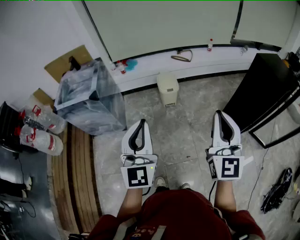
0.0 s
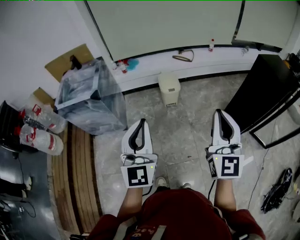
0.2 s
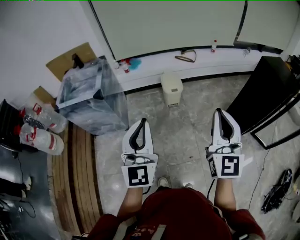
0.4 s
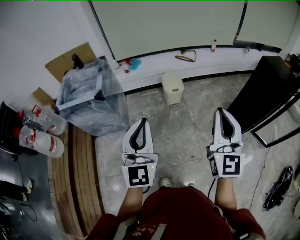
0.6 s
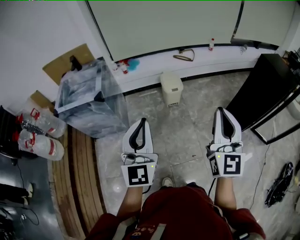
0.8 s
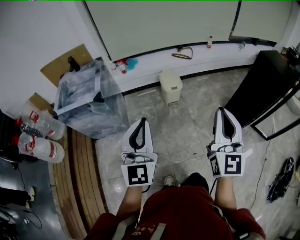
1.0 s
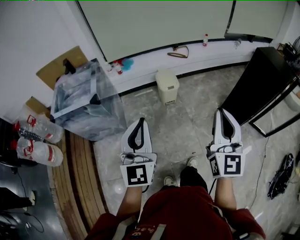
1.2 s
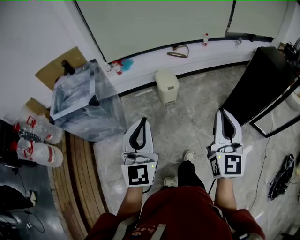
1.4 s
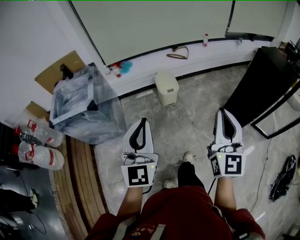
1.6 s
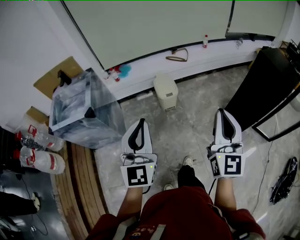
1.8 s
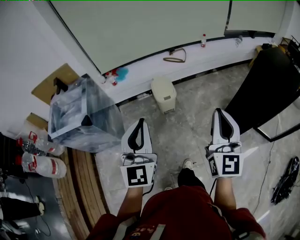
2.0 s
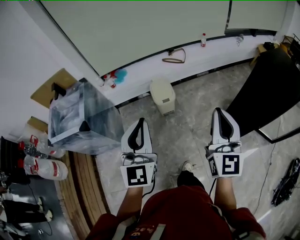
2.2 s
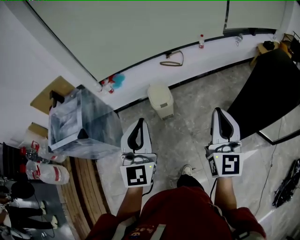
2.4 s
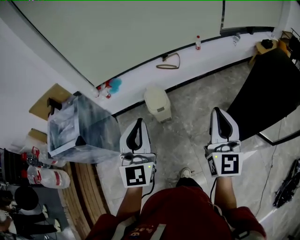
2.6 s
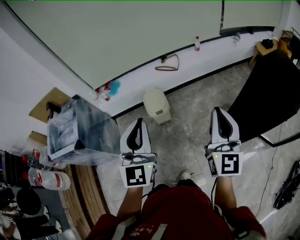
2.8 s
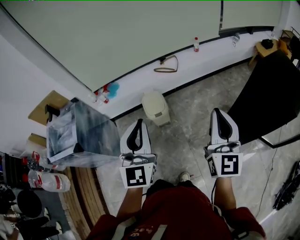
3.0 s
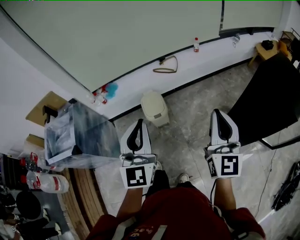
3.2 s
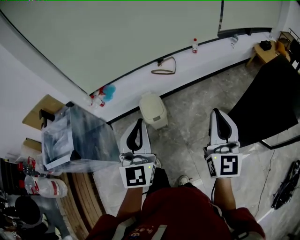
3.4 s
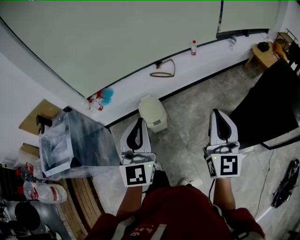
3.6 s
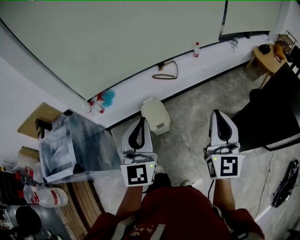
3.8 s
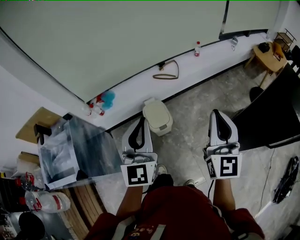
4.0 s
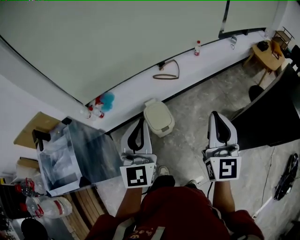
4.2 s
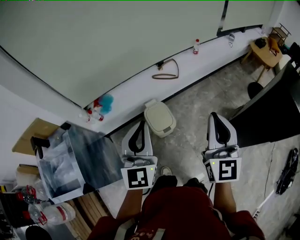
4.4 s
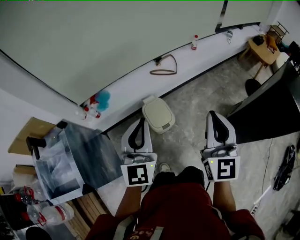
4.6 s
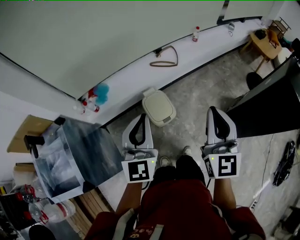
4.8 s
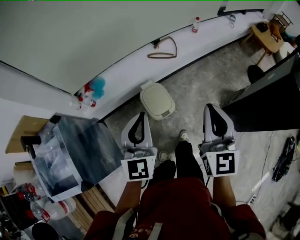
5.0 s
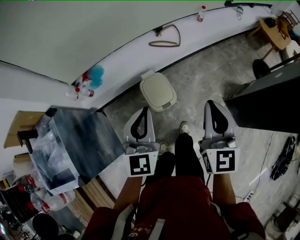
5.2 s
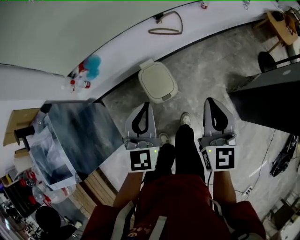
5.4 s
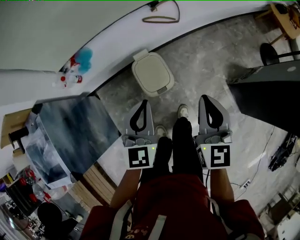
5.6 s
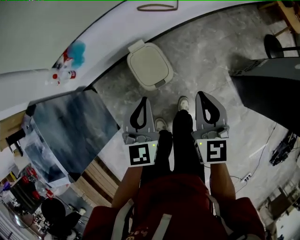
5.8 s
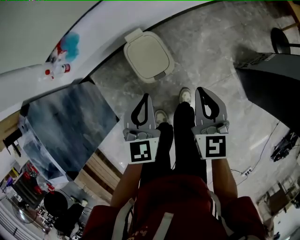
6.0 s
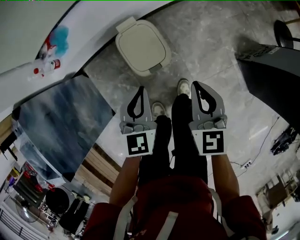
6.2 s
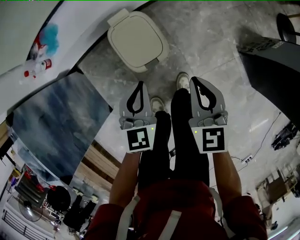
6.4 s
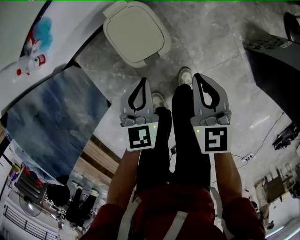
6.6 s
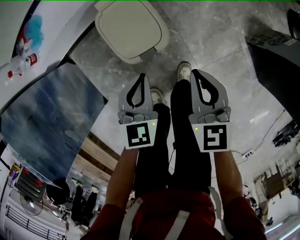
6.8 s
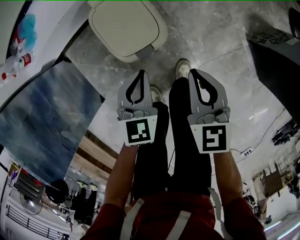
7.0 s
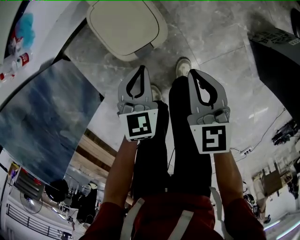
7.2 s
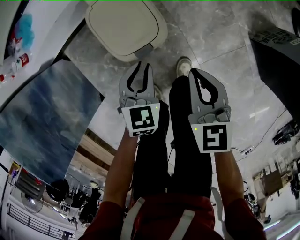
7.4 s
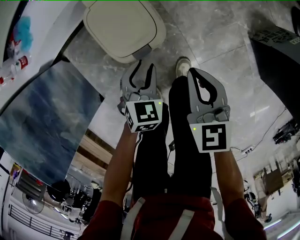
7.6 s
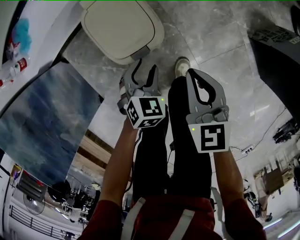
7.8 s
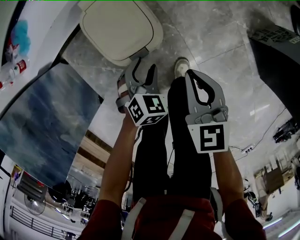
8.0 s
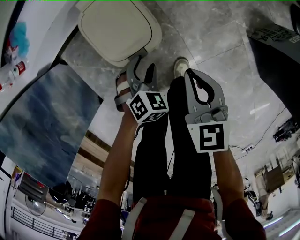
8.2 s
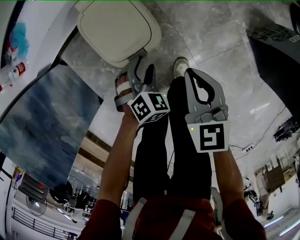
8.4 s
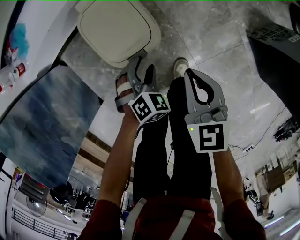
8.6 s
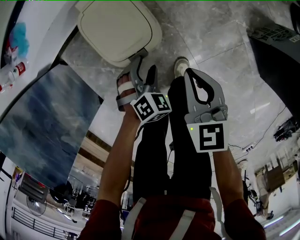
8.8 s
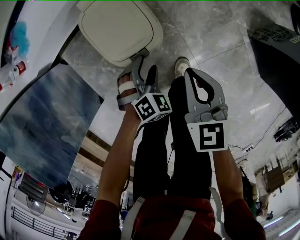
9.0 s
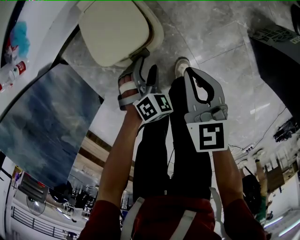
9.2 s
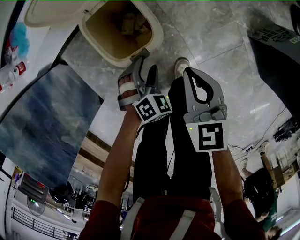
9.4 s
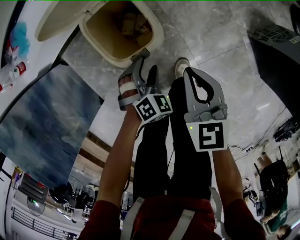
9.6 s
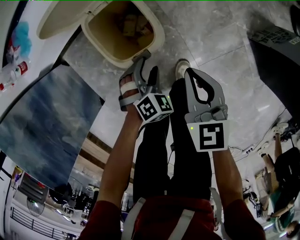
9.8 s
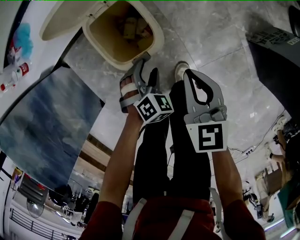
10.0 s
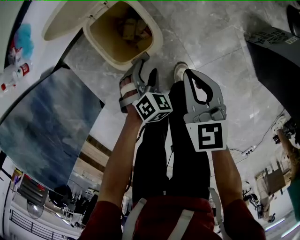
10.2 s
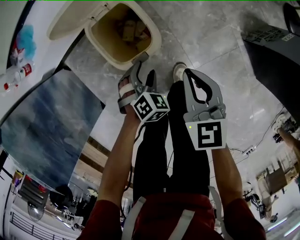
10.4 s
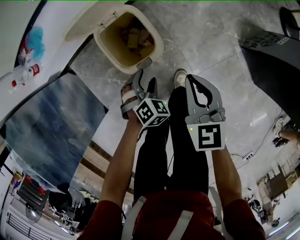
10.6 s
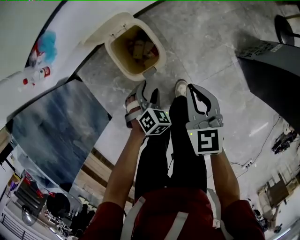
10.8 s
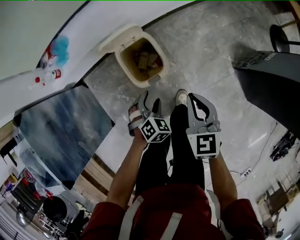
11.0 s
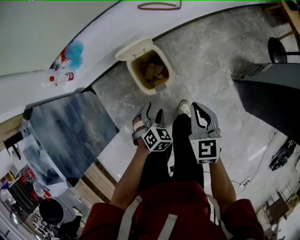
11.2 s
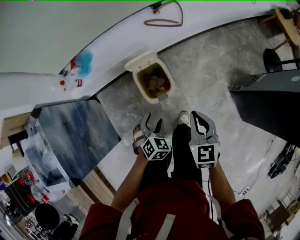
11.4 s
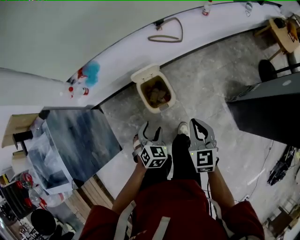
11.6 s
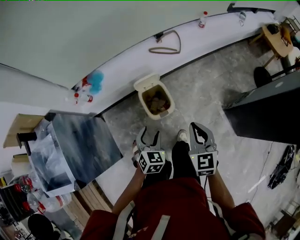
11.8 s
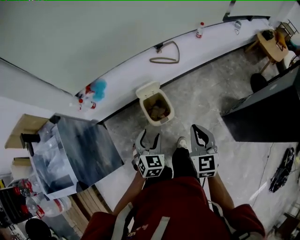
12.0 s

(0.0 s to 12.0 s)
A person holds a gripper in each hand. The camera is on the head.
0.0 s - 1.6 s: The grippers both shift forward and to the left by roughly 10 cm.
1.6 s - 3.0 s: The two grippers go some 30 cm forward and to the right.
3.0 s - 4.4 s: The left gripper travels forward and to the left by some 25 cm; the right gripper shifts roughly 25 cm to the left and forward.
4.4 s - 6.0 s: The two grippers go roughly 35 cm downward. The left gripper tilts its fingers roughly 30 degrees downward; the right gripper rotates some 30 degrees.
6.0 s - 7.6 s: Both grippers travel together downward, approximately 25 cm. The left gripper swivels roughly 30 degrees, and opens up.
7.6 s - 9.0 s: The left gripper is displaced downward by about 5 cm, turns by roughly 30 degrees, and opens up.
9.0 s - 10.4 s: There are only small adjustments of the grippers.
10.4 s - 12.0 s: Both grippers move upward, some 35 cm. The left gripper swivels some 40 degrees.

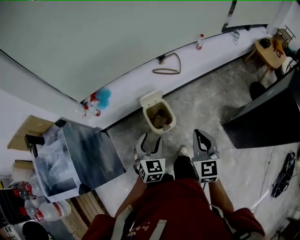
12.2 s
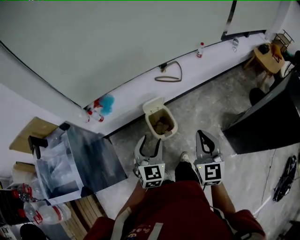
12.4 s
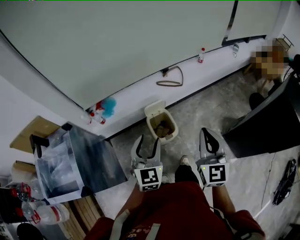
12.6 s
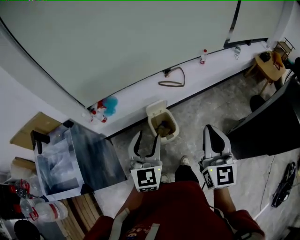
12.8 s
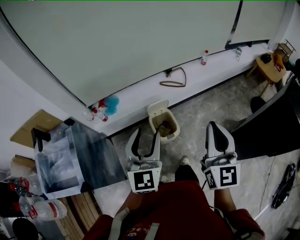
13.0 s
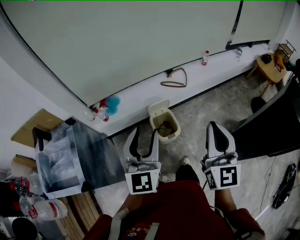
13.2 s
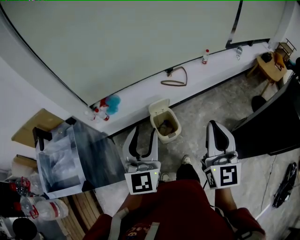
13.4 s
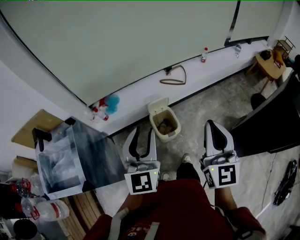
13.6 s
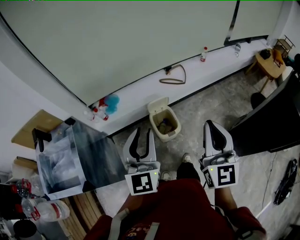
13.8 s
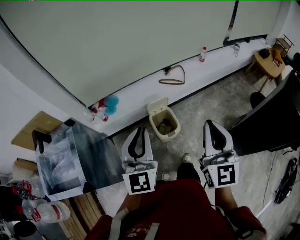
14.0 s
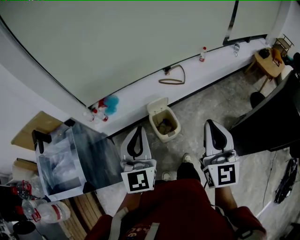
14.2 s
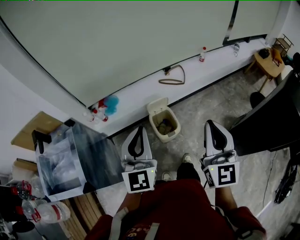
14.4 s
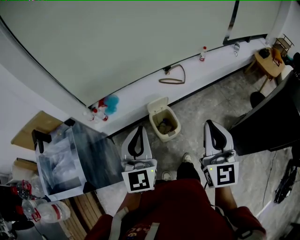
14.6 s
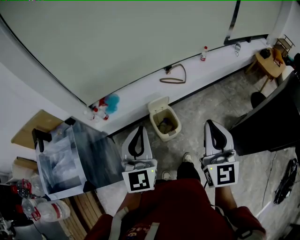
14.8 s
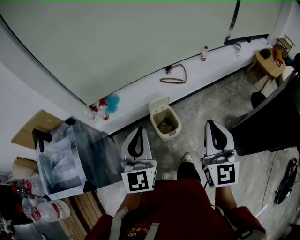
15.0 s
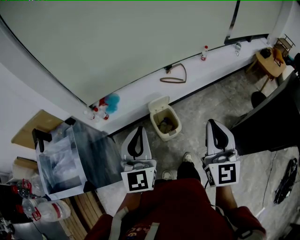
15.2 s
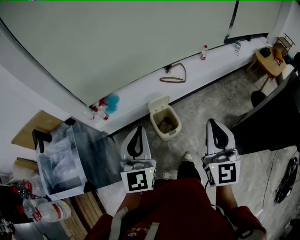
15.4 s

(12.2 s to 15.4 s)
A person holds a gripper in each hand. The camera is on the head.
12.2 s - 13.8 s: The grippers both shift upward by about 20 cm. The left gripper angles its fingers upward, by roughly 30 degrees, and closes its fingers.
13.8 s - 15.4 s: The left gripper closes.

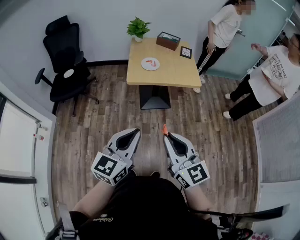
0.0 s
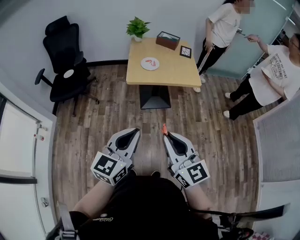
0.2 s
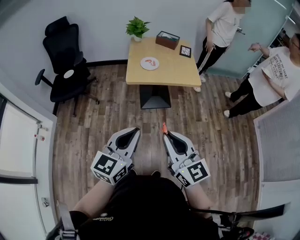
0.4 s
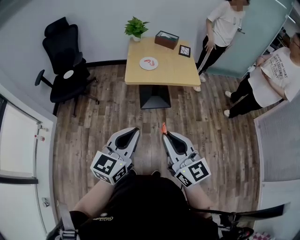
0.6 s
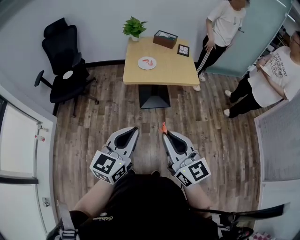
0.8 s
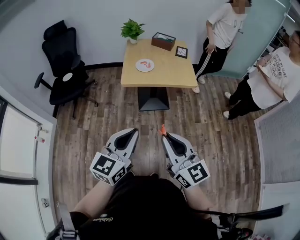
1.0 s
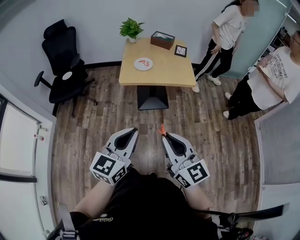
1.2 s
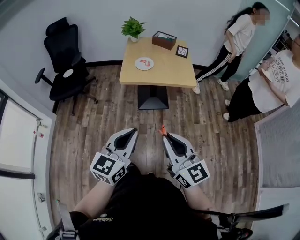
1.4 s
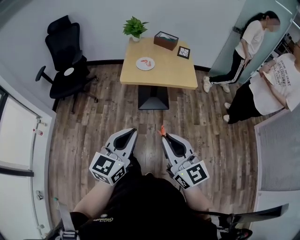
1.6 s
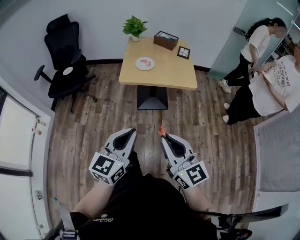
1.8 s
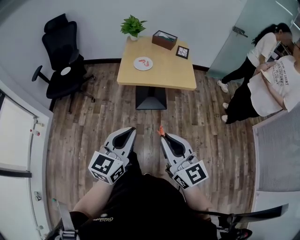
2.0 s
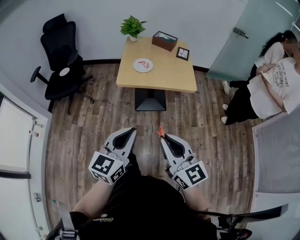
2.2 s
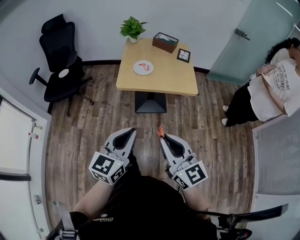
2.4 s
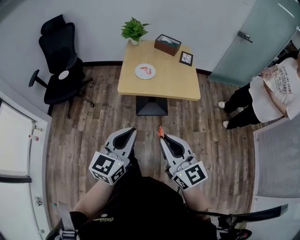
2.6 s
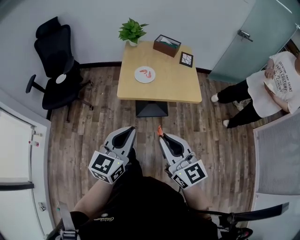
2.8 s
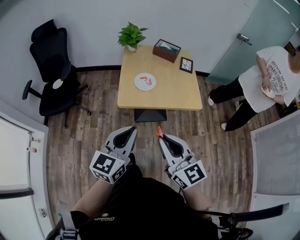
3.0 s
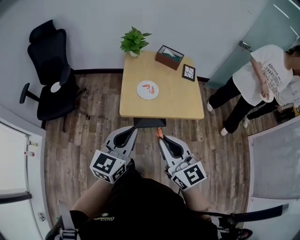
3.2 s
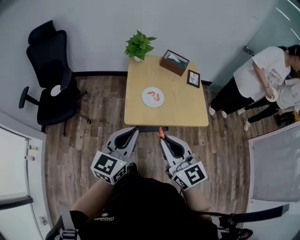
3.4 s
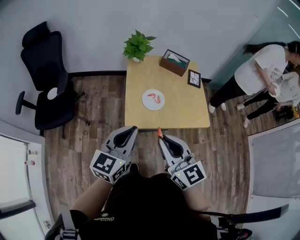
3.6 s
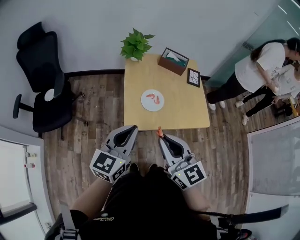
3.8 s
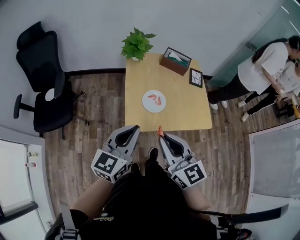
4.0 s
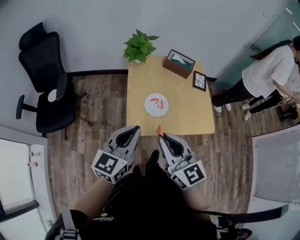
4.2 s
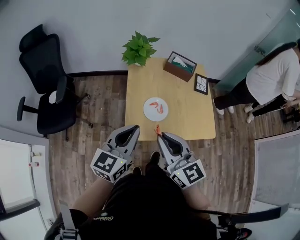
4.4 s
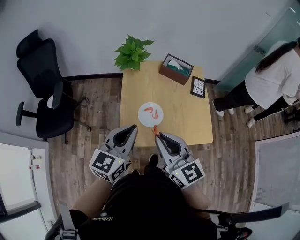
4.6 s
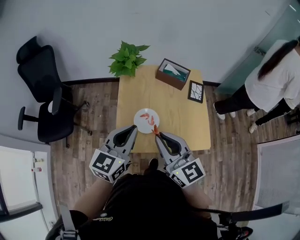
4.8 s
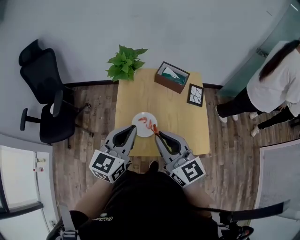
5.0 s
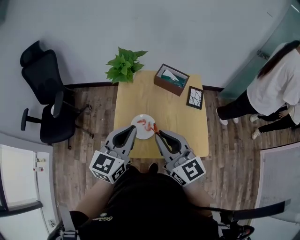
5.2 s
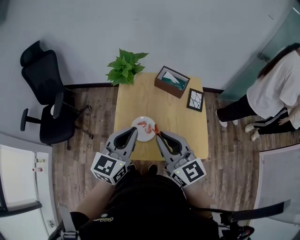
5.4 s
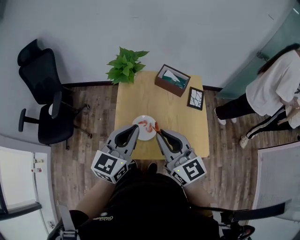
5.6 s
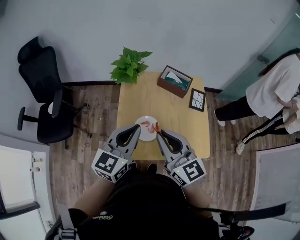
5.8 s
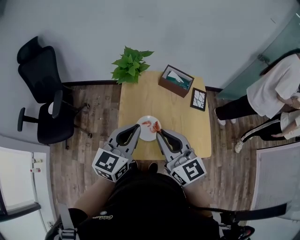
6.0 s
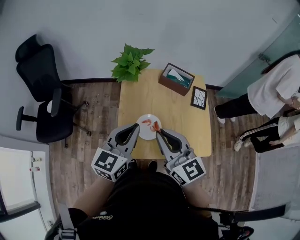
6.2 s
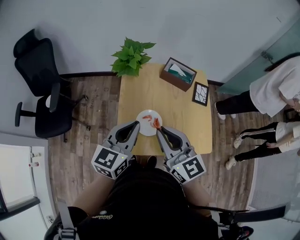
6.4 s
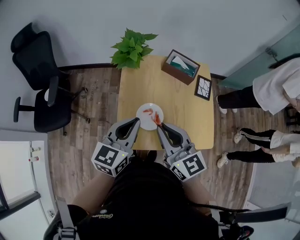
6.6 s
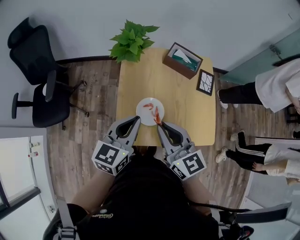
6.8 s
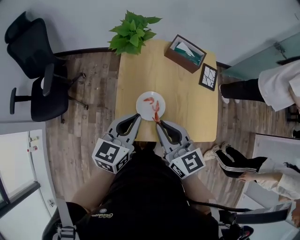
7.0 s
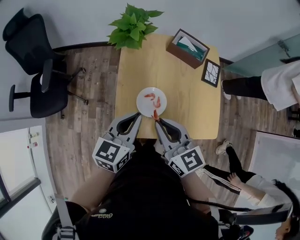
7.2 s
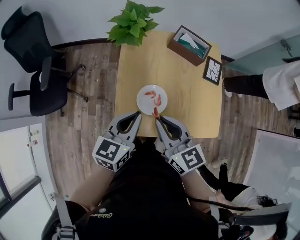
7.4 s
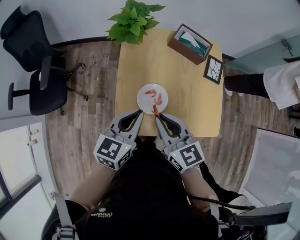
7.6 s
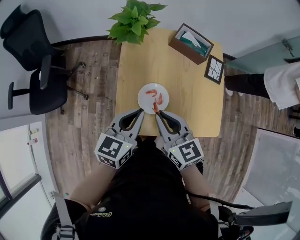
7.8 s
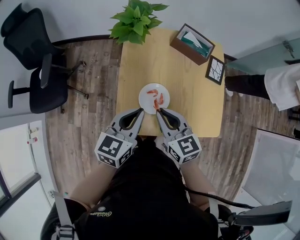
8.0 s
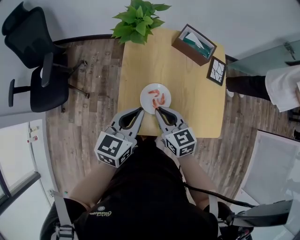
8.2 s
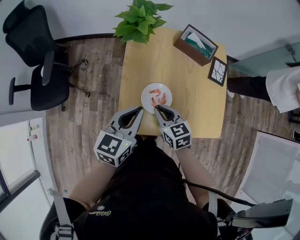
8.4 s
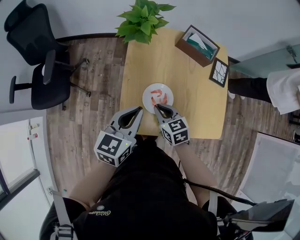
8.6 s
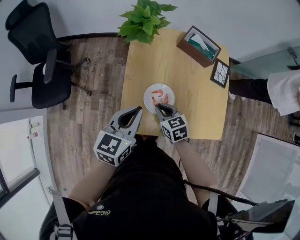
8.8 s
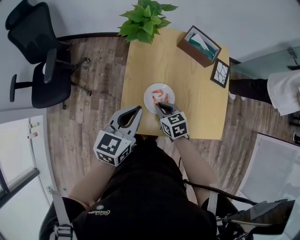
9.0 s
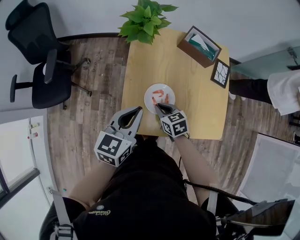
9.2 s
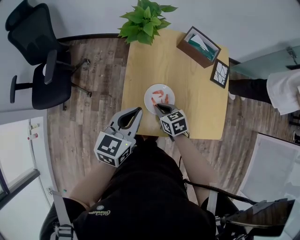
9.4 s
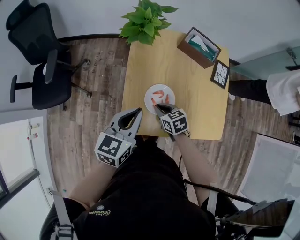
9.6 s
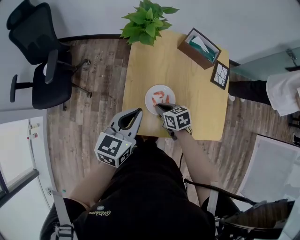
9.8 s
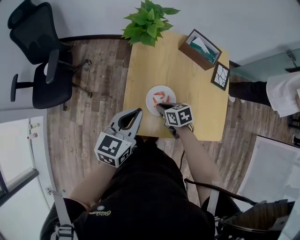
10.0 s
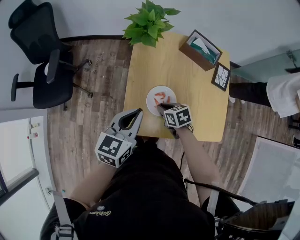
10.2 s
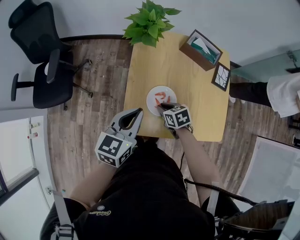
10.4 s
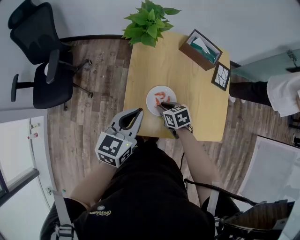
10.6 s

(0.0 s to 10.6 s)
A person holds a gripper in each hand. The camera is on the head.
0.0 s - 1.6 s: Both grippers move to the right, about 10 cm.
1.6 s - 3.0 s: The grippers both shift forward by roughly 25 cm.
3.0 s - 4.6 s: The two grippers go roughly 30 cm forward.
4.6 s - 6.0 s: Both grippers move forward, approximately 10 cm.
6.0 s - 7.6 s: Both grippers travel together downward, approximately 10 cm.
7.6 s - 9.0 s: The right gripper moves downward, some 20 cm, and swivels approximately 30 degrees.
9.0 s - 10.6 s: The grippers stay close to where they were, moving slightly.
